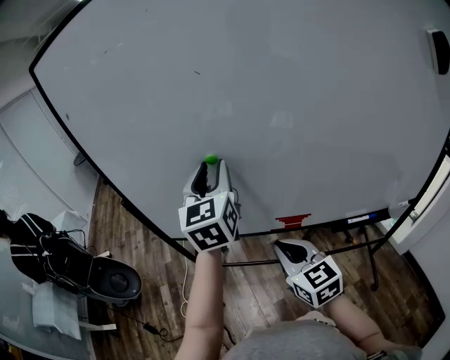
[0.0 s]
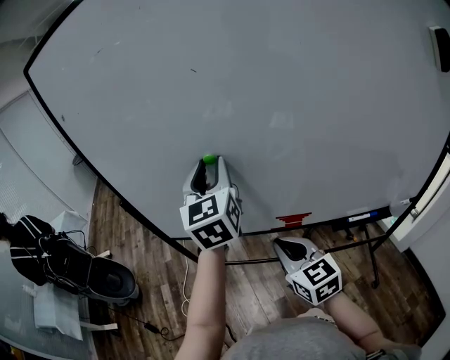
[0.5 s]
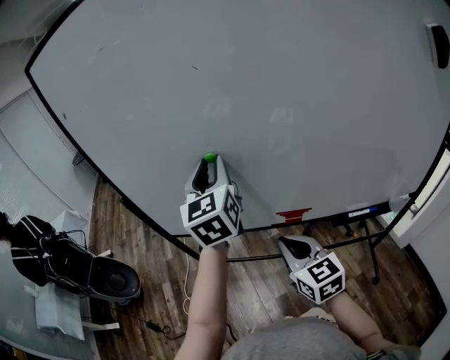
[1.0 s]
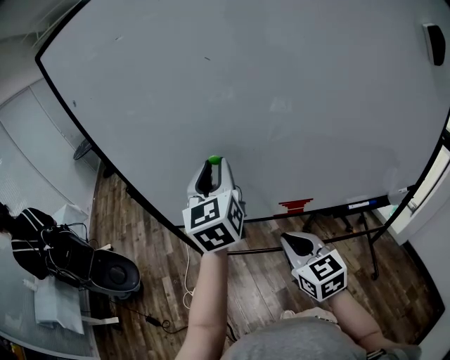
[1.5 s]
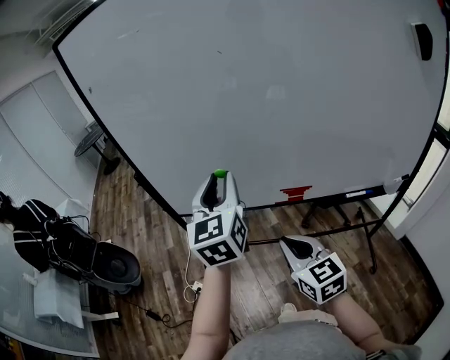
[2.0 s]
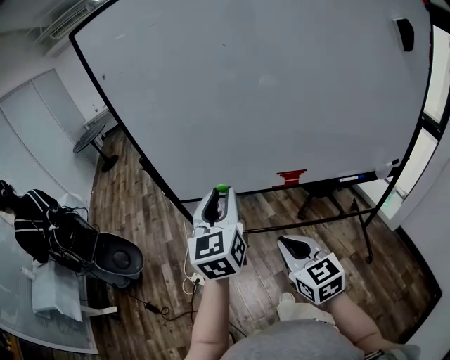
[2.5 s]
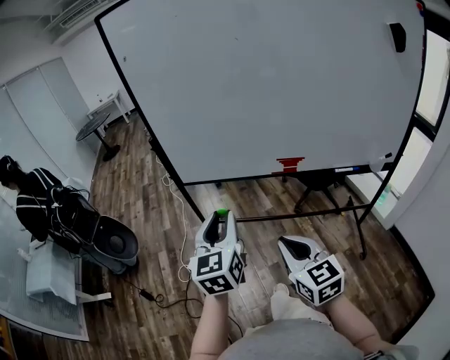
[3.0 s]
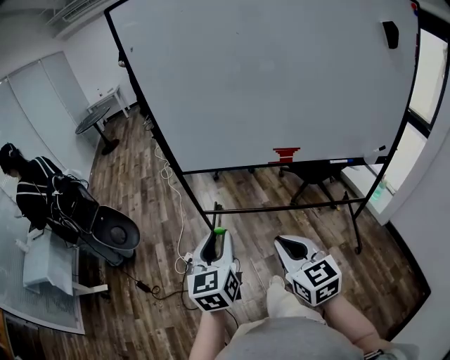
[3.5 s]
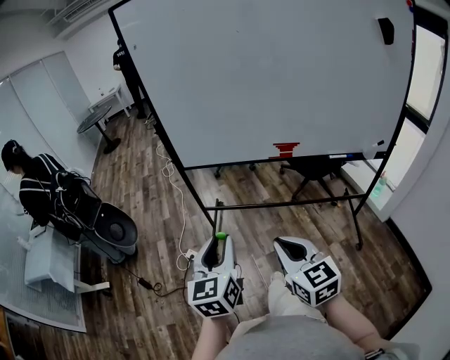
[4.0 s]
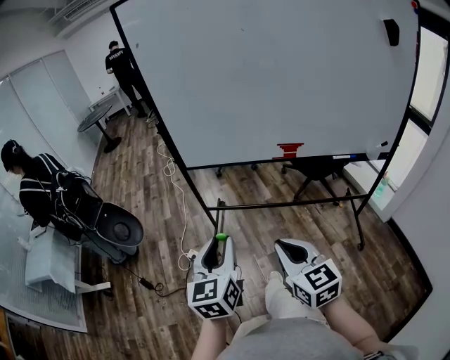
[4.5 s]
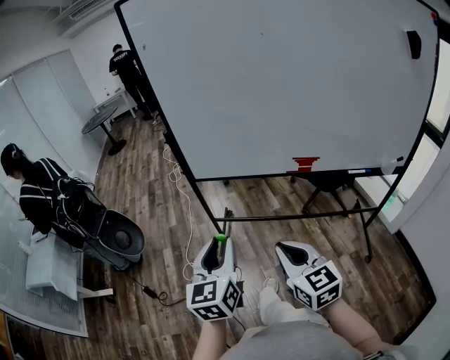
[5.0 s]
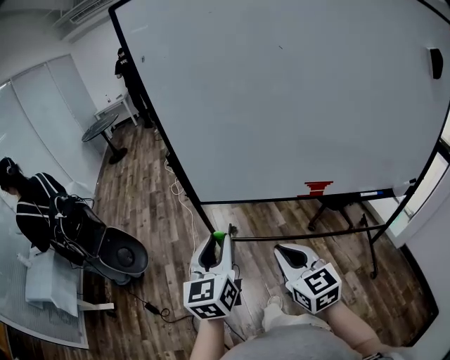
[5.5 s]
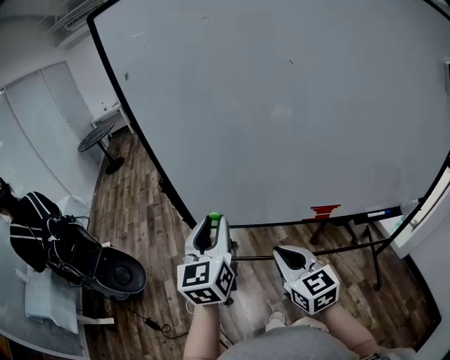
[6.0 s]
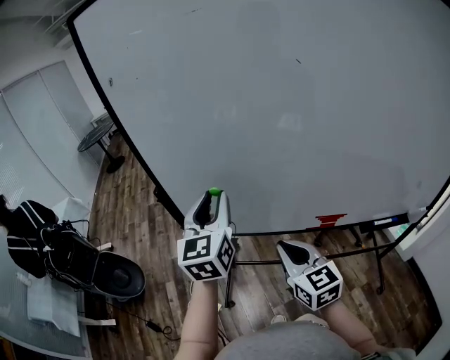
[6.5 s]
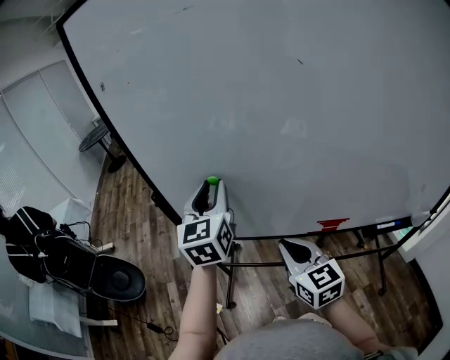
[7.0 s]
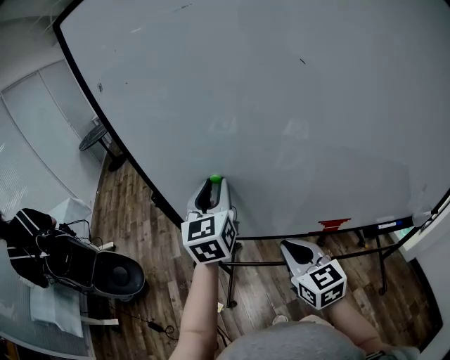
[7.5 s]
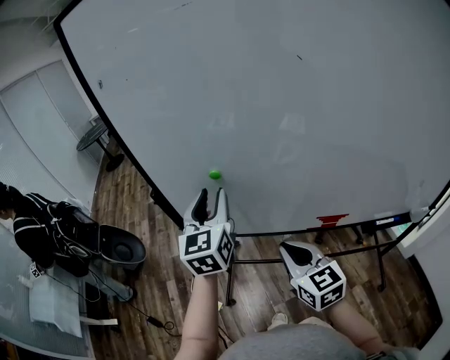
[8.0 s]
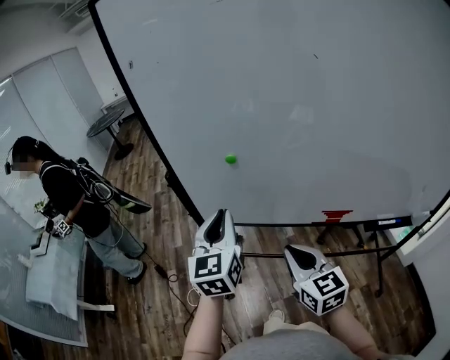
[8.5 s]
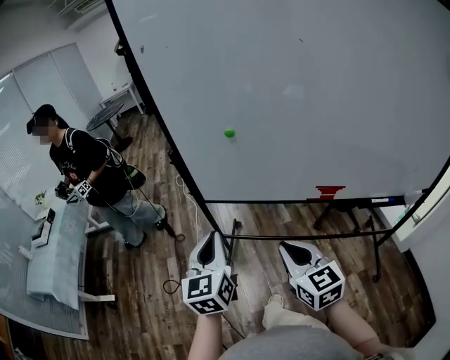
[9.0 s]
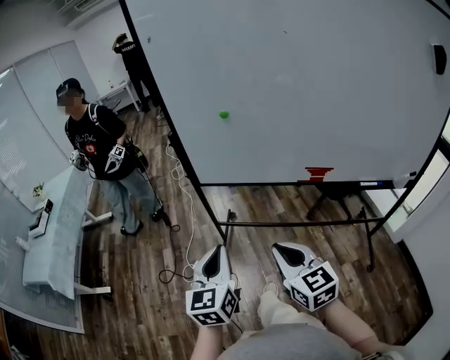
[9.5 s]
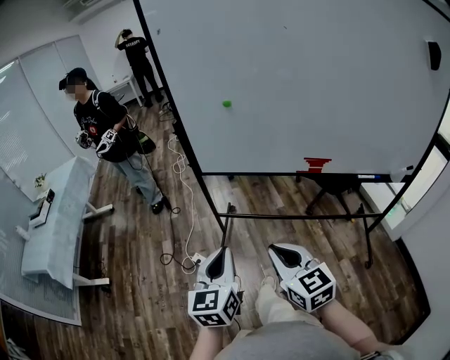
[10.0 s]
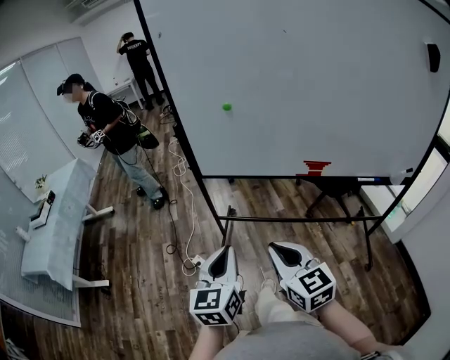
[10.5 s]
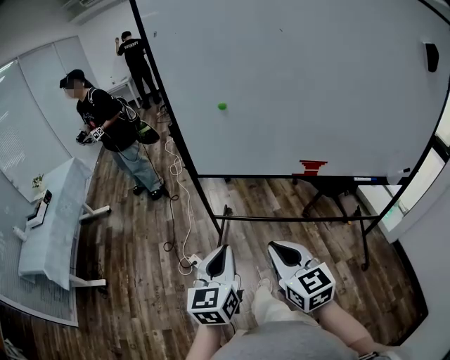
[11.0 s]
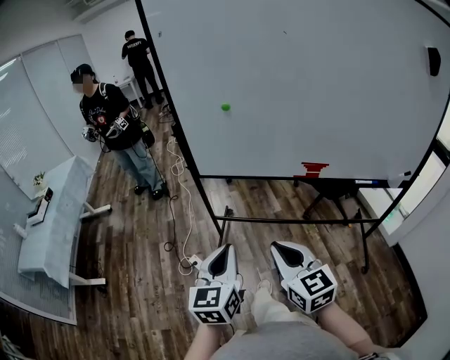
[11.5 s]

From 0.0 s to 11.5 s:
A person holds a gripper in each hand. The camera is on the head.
From 0.0 s to 2.0 s: The left gripper is displaced backward and to the left by some 15 cm. The right gripper shifts approximately 10 cm backward.
From 2.0 s to 4.0 s: The right gripper is displaced backward by about 25 cm, while the left gripper is displaced backward and to the left by approximately 35 cm.
From 4.0 s to 6.0 s: The two grippers go roughly 35 cm forward.
From 6.0 s to 7.5 s: The right gripper heads forward and to the right, covering approximately 10 cm. The left gripper shifts roughly 15 cm forward.
From 7.5 s to 9.5 s: The right gripper is displaced backward by approximately 25 cm. Meanwhile the left gripper travels backward by approximately 35 cm, and closes its fingers.
From 9.5 s to 11.5 s: The left gripper travels backward by approximately 5 cm.

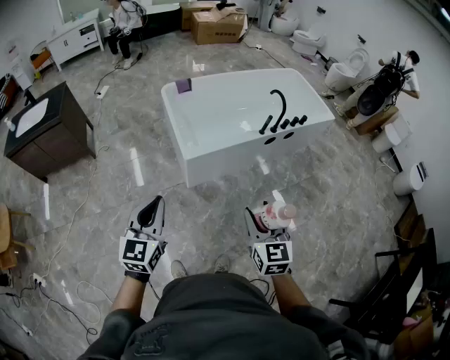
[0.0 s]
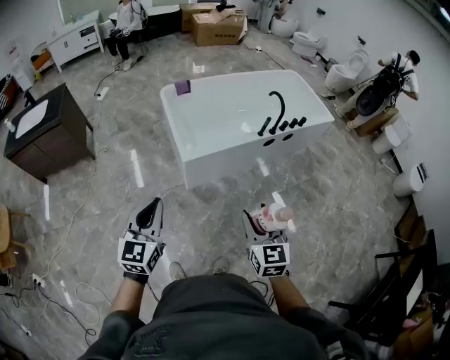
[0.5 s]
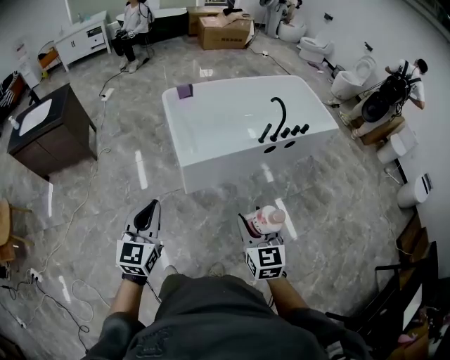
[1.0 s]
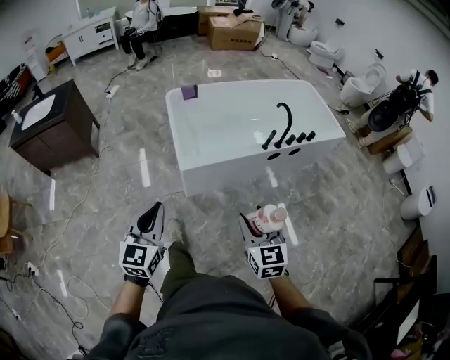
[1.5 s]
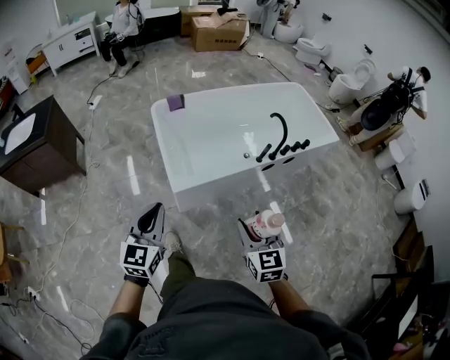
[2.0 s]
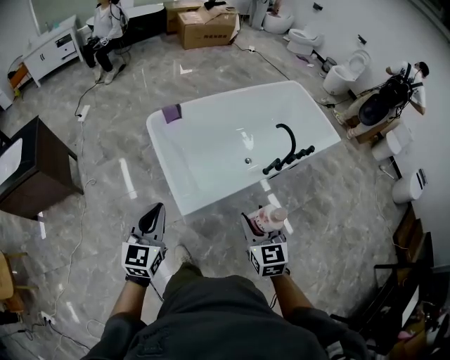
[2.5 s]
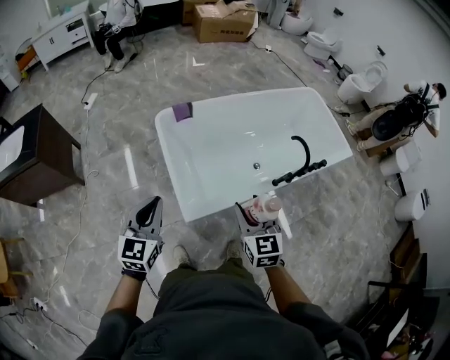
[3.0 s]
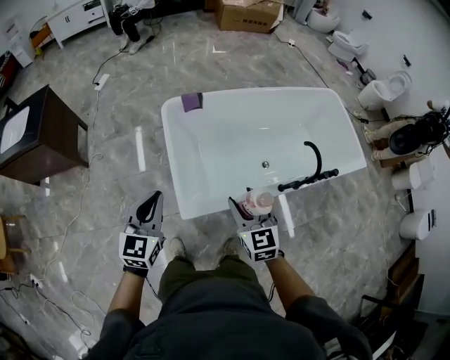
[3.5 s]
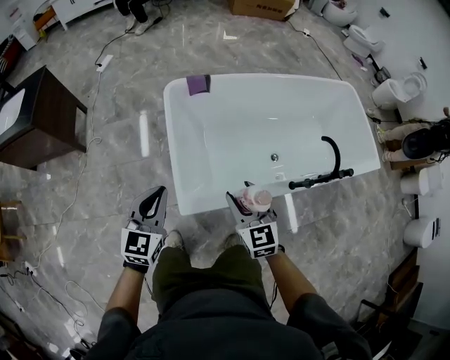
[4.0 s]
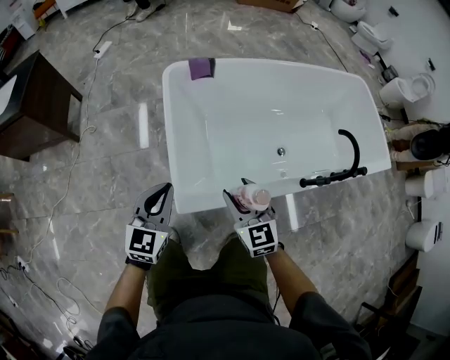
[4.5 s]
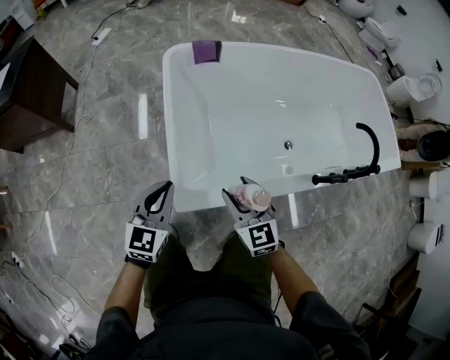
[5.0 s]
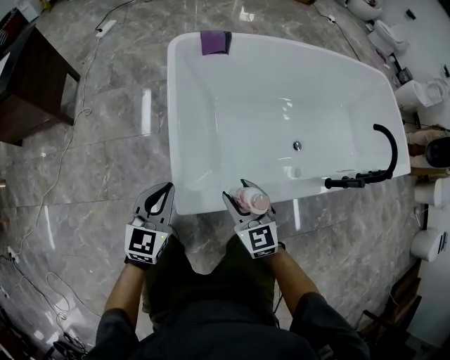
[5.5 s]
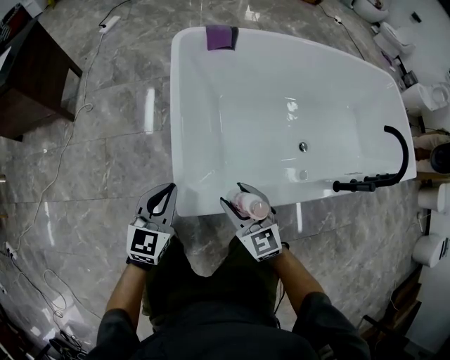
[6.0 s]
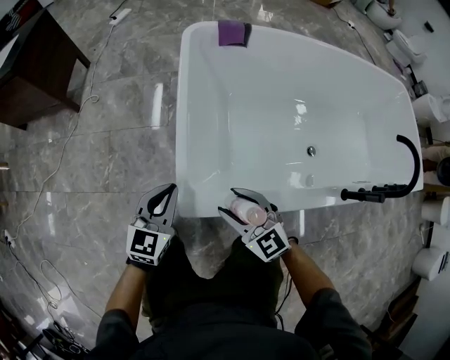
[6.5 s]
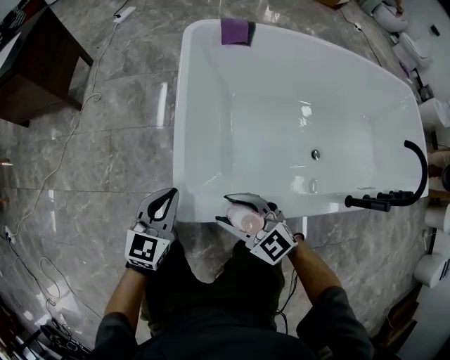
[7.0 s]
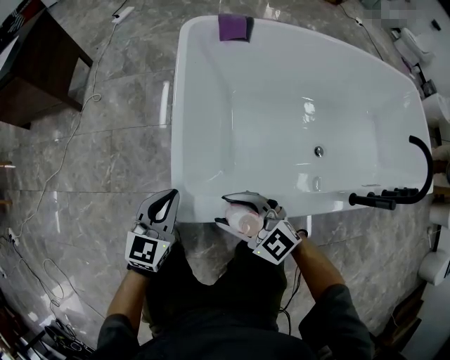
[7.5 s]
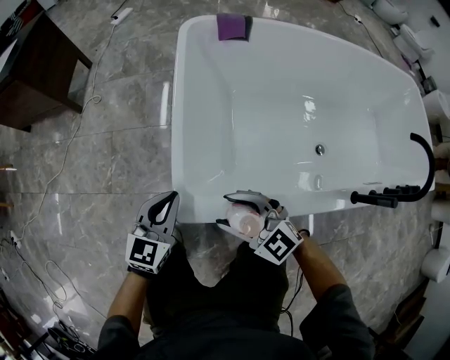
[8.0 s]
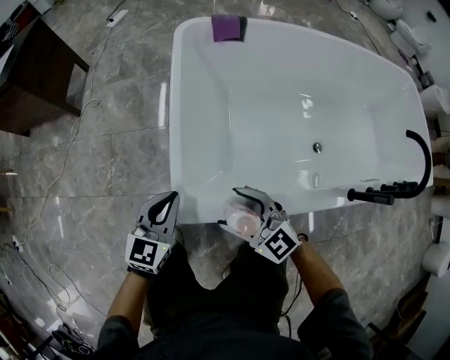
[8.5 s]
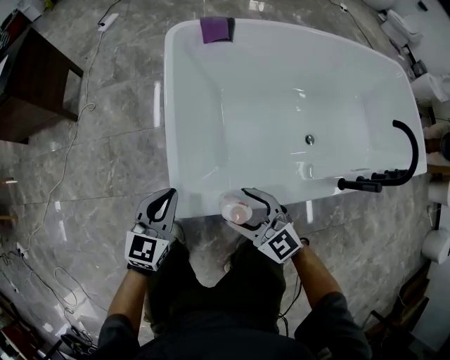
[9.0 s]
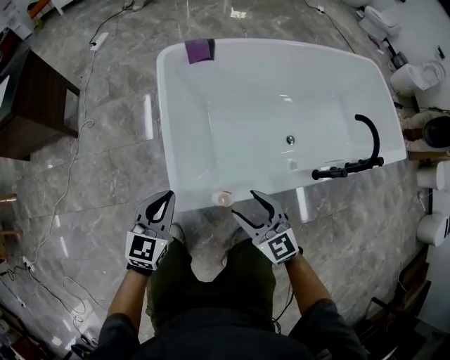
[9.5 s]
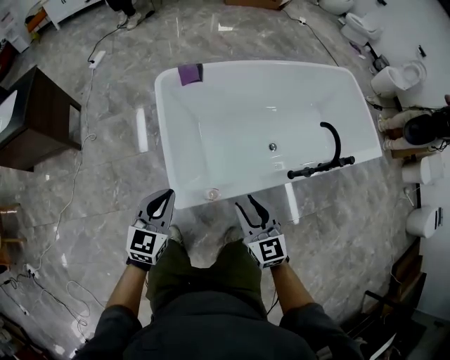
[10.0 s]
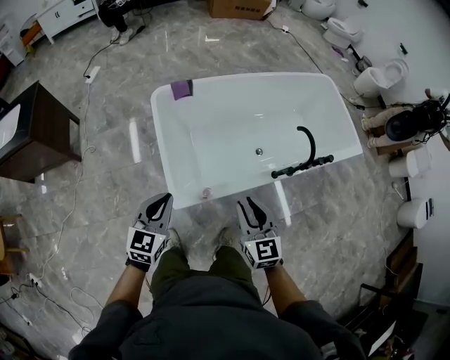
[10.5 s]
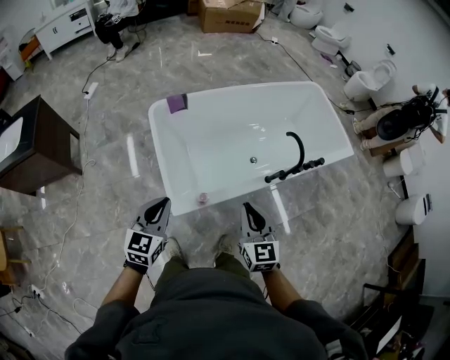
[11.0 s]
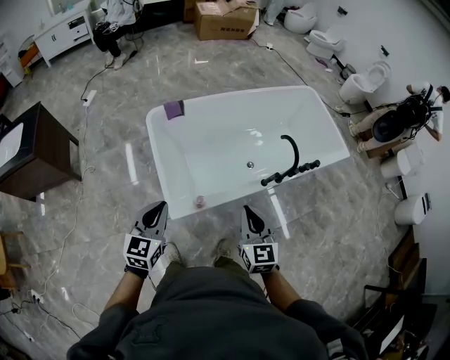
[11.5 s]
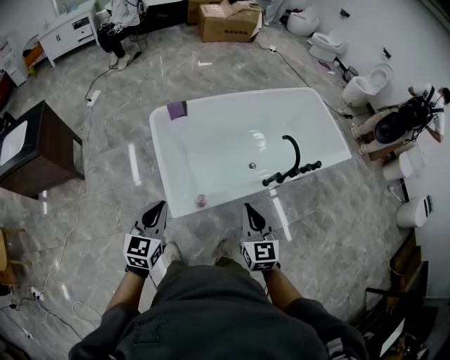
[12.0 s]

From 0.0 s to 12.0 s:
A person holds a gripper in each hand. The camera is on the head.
From 0.0 s to 2.0 s: The grippers both shift forward by about 20 cm.
From 2.0 s to 4.0 s: The right gripper heads forward, covering about 35 cm. Meanwhile the left gripper travels forward and downward by roughly 35 cm.
From 4.0 s to 6.0 s: Both grippers travel together downward, about 30 cm.
From 6.0 s to 8.0 s: The right gripper changes its angle by about 40 degrees.
From 8.0 s to 10.0 s: Both grippers travel together upward, some 30 cm. The right gripper swivels some 50 degrees.
From 10.0 s to 12.0 s: The right gripper heads upward, covering approximately 15 cm, and closes up. Meanwhile the left gripper moves upward and backward, about 15 cm.

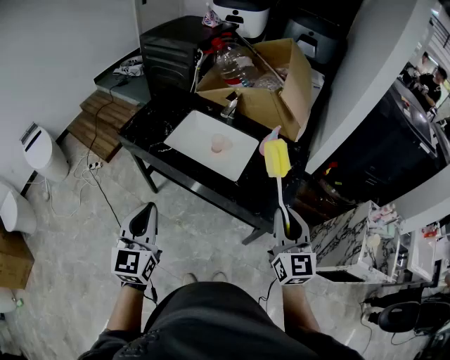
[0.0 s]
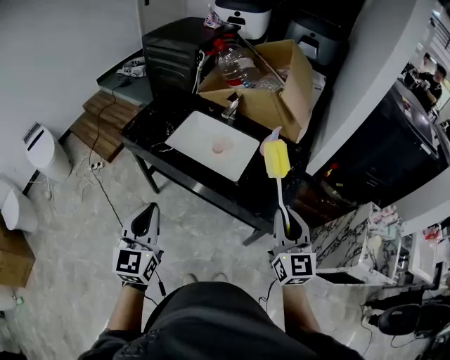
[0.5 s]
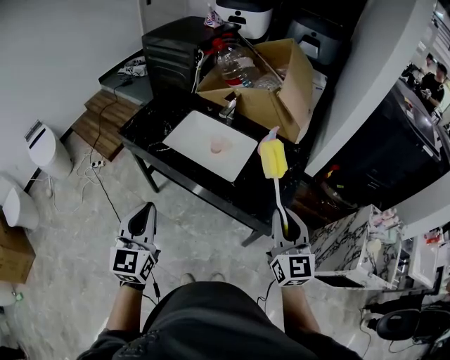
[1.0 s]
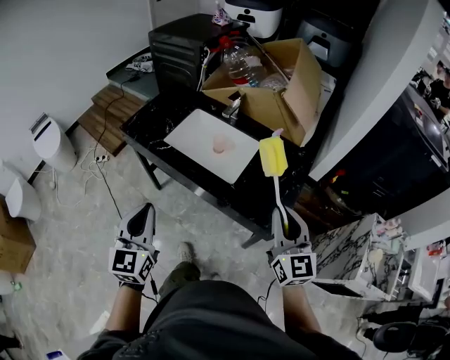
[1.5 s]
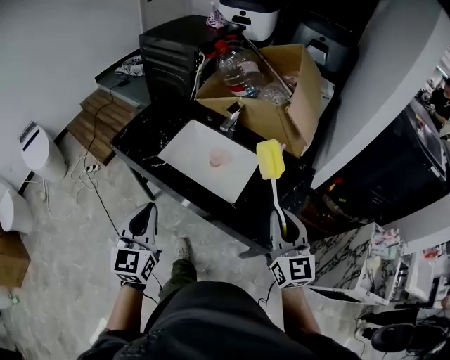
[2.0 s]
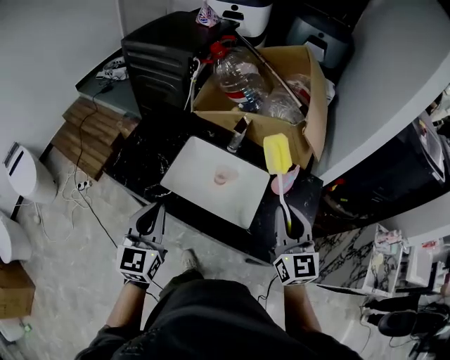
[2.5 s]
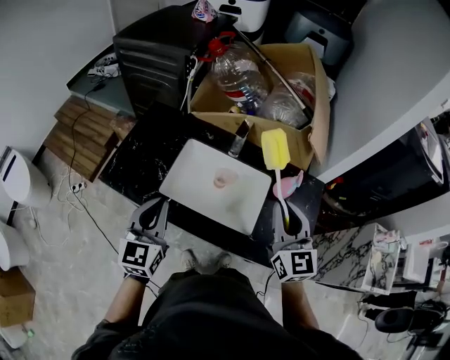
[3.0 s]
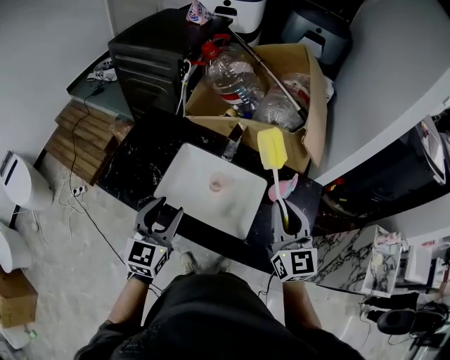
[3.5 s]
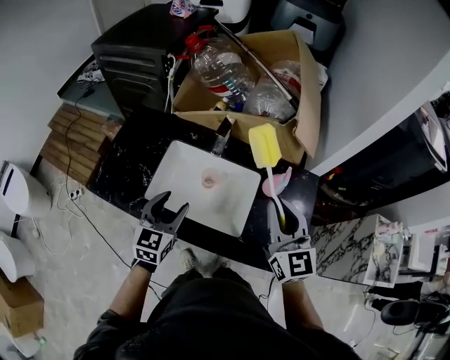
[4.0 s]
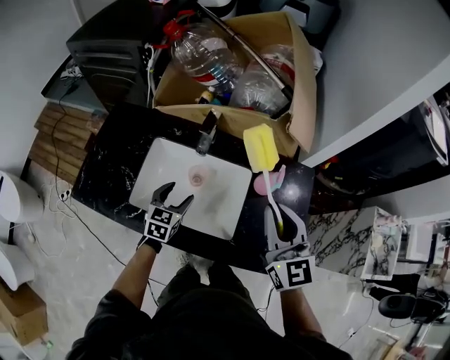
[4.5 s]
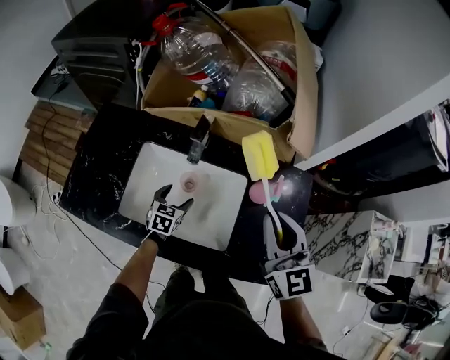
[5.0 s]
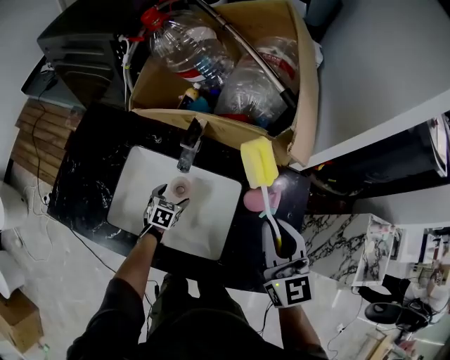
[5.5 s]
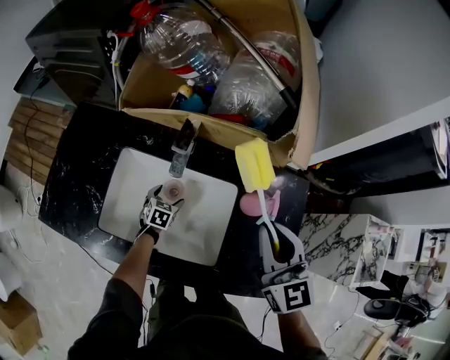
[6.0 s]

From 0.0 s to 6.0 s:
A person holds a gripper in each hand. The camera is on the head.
From 0.0 s to 2.0 s: Both grippers move forward, approximately 10 cm.
From 2.0 s to 4.0 s: The two grippers go approximately 20 cm forward. The left gripper swivels about 30 degrees, and opens its fingers.
From 4.0 s to 6.0 s: The right gripper heads forward and downward, covering roughly 10 cm. Meanwhile the left gripper is displaced downward and forward by approximately 40 cm, tilts its fingers about 30 degrees downward, and opens up.
